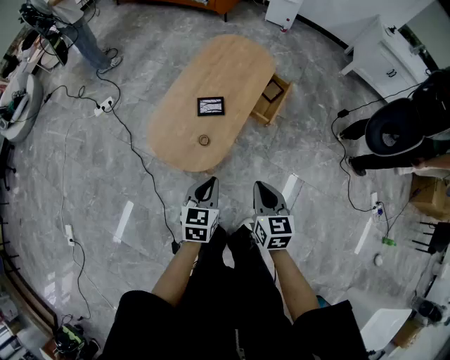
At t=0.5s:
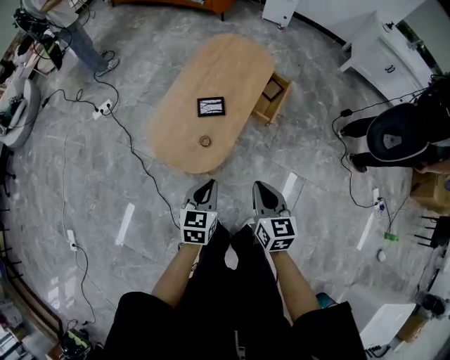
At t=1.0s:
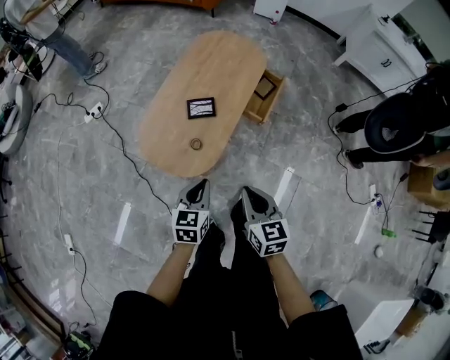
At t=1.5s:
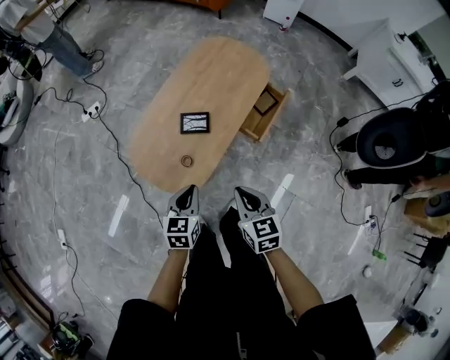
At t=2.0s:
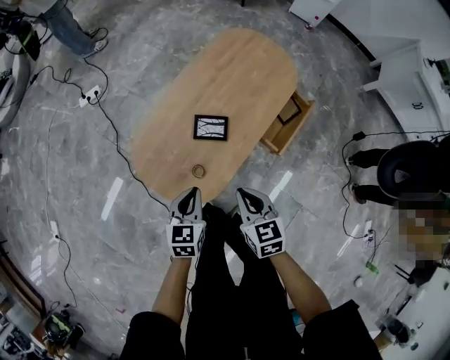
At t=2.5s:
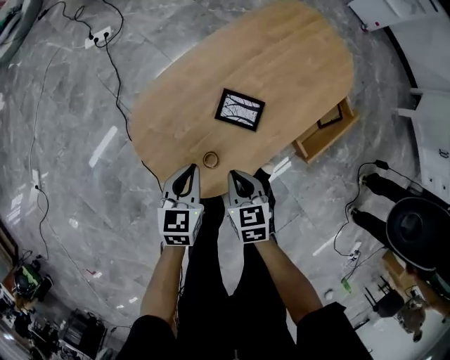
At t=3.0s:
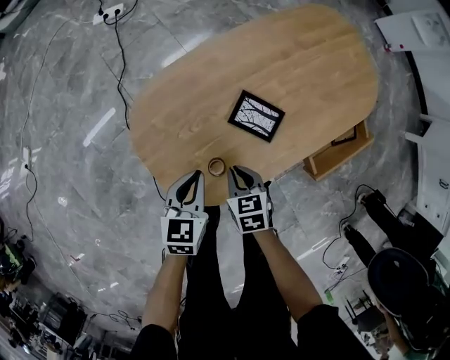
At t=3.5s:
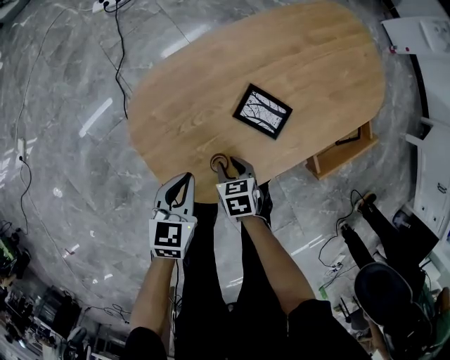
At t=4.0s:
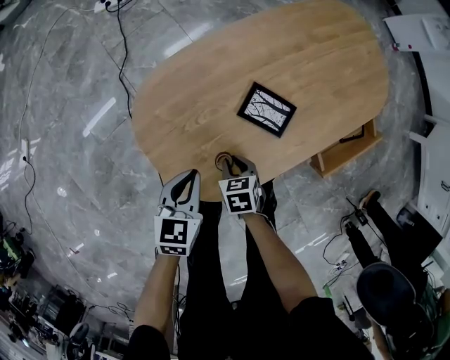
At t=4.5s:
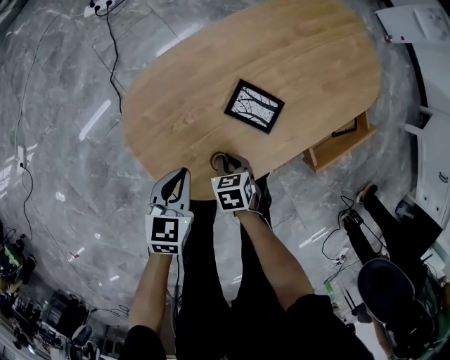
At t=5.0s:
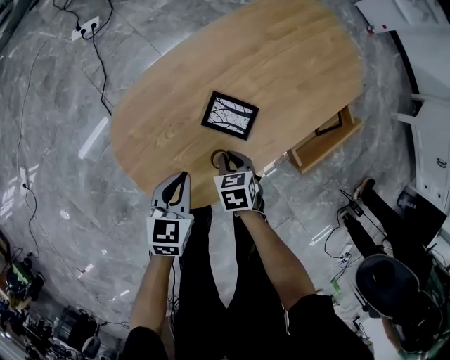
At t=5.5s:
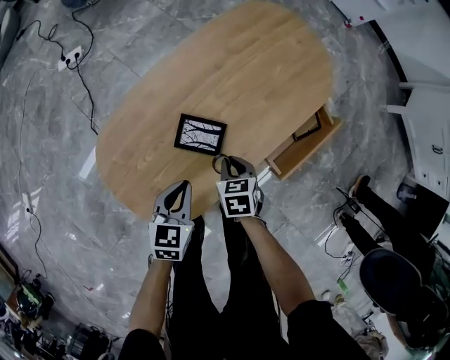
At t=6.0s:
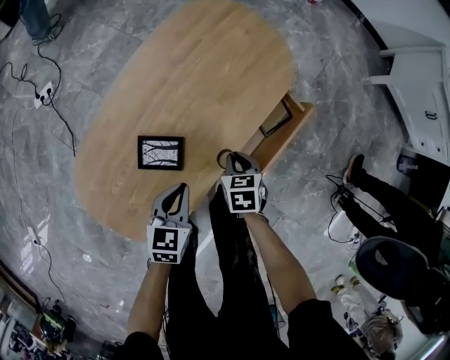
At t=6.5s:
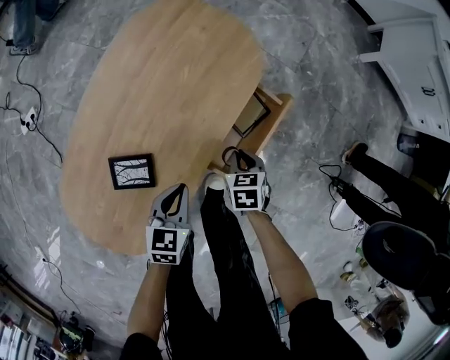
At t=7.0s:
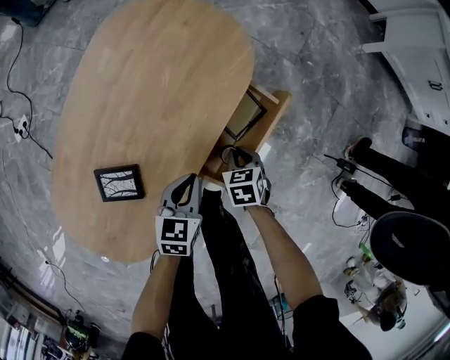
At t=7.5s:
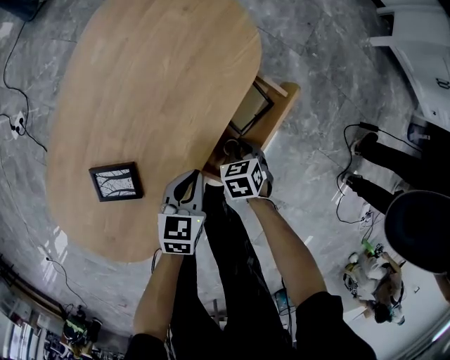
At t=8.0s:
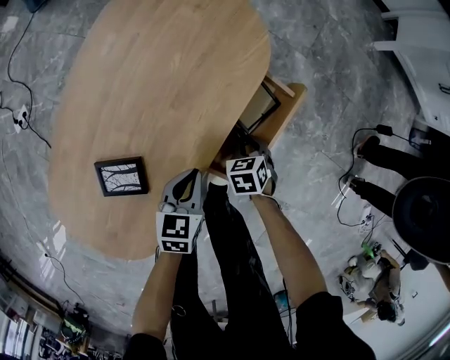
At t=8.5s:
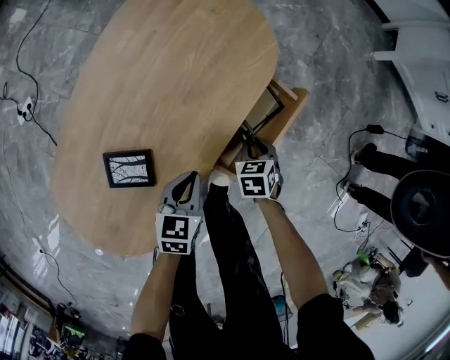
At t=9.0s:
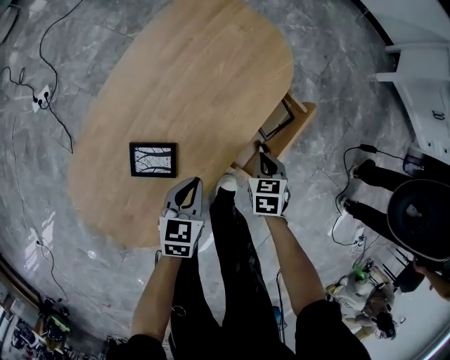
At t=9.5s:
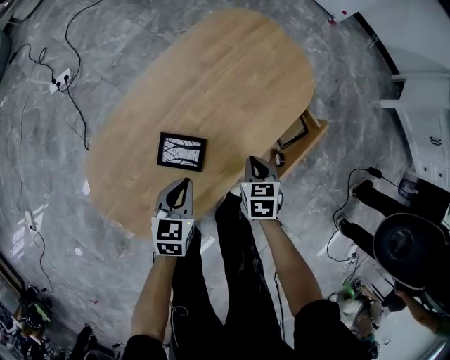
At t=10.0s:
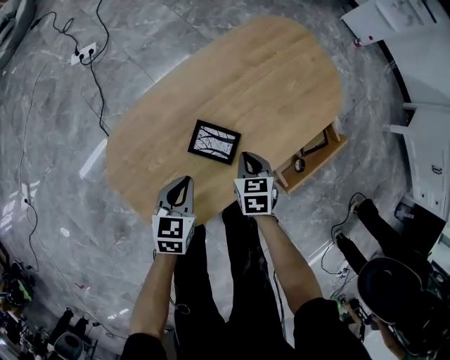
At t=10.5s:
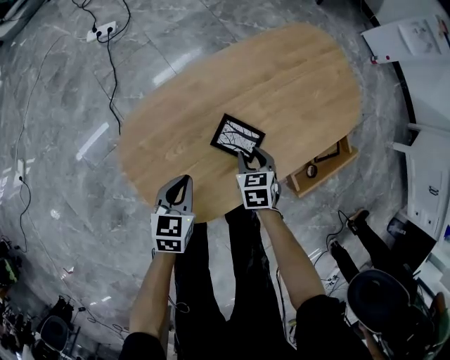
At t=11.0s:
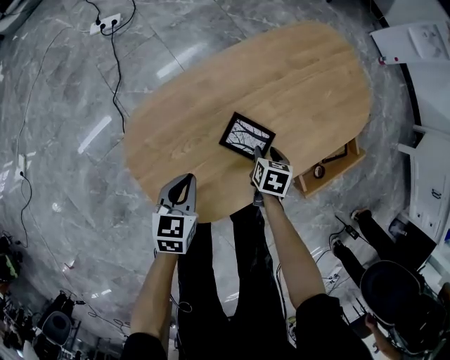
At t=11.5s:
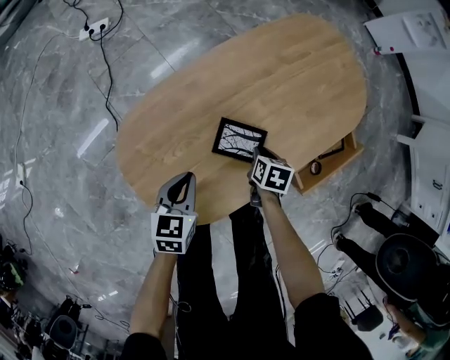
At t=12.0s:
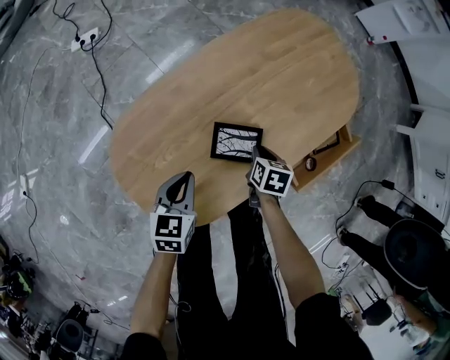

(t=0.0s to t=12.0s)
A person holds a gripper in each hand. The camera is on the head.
t=0.0s - t=2.0s: Both grippers travel together forward and downward, roughly 20 cm. The right gripper swivels roughly 20 degrees.
t=2.0s - t=4.0s: The left gripper is displaced downward and to the left by about 20 cm. Meanwhile the right gripper is displaced downward by some 35 cm, and swivels roughly 30 degrees.
t=4.0s - t=6.0s: The left gripper ends up approximately 25 cm from where it was, and changes its angle by some 20 degrees. Meanwhile the right gripper ends up some 35 cm from where it was, and swivels approximately 30 degrees.
t=6.0s - t=8.0s: The left gripper travels to the right, downward and forward by approximately 20 cm, while the right gripper moves downward, to the right and forward, approximately 20 cm.
t=8.0s - t=10.0s: The left gripper shifts by about 30 cm, and swivels about 20 degrees. The right gripper shifts by approximately 30 cm, and changes its angle by about 20 degrees.
t=10.0s - t=12.0s: The right gripper is displaced downward by about 5 cm, swivels approximately 30 degrees, and opens and closes again.

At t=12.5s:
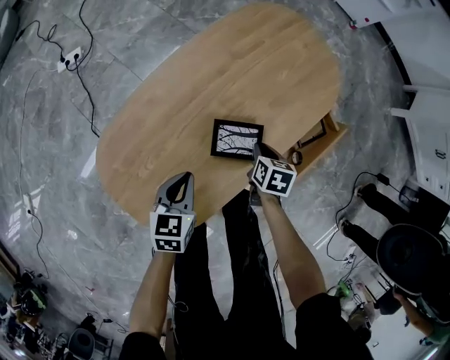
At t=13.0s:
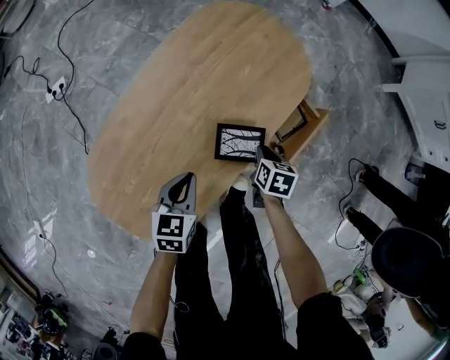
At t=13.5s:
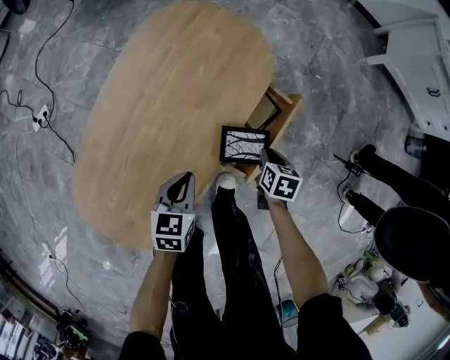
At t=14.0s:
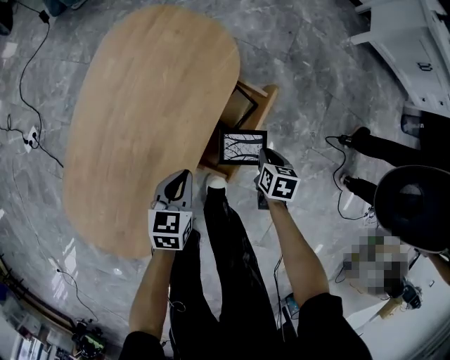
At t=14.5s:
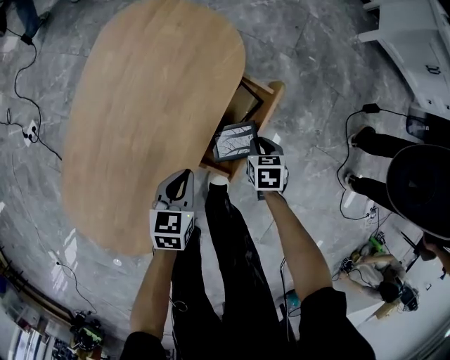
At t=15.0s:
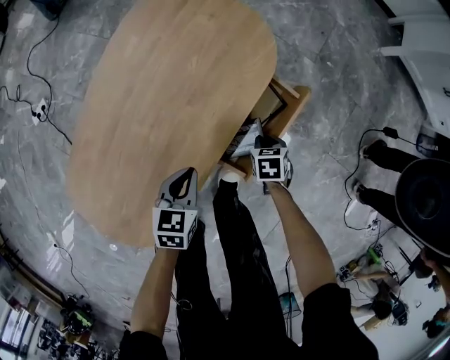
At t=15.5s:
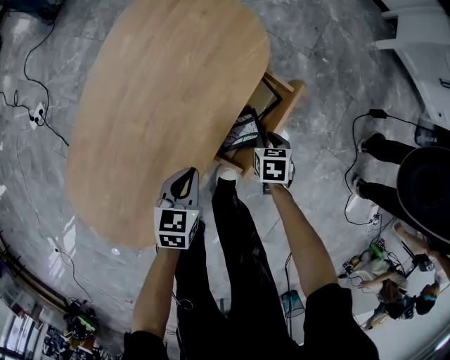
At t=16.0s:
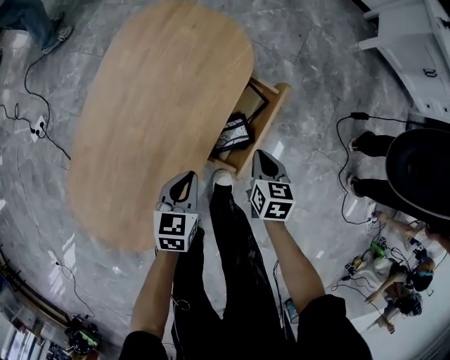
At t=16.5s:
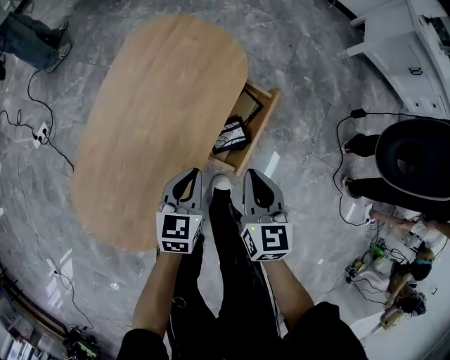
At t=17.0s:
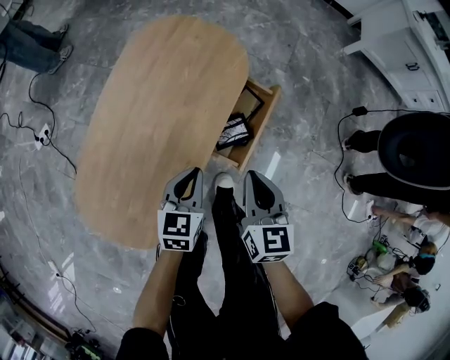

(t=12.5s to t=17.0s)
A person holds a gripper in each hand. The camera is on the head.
t=12.5s - t=14.5s: The left gripper moves to the right and forward, some 25 cm, and changes its angle by roughly 20 degrees. The right gripper travels to the right by approximately 25 cm.
t=14.5s - t=17.0s: The left gripper heads upward, covering approximately 10 cm; the right gripper moves upward and backward, roughly 30 cm, and points its fingers approximately 40 degrees further upward.

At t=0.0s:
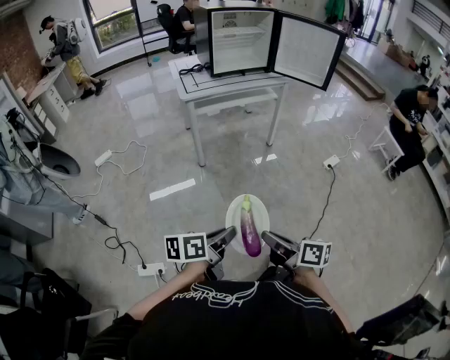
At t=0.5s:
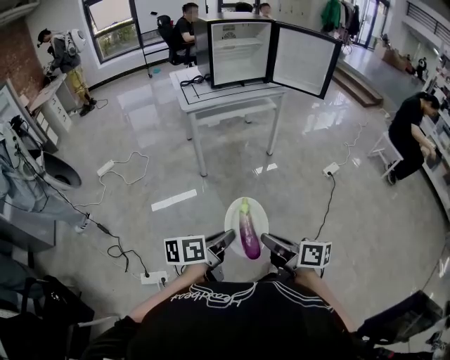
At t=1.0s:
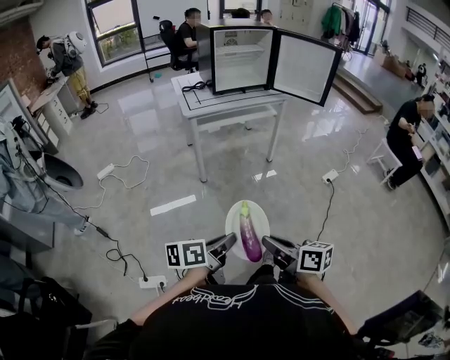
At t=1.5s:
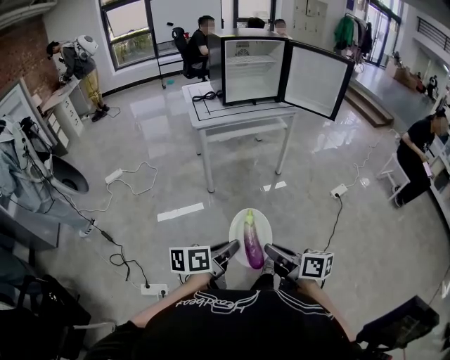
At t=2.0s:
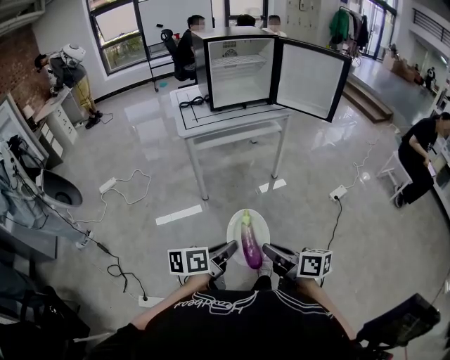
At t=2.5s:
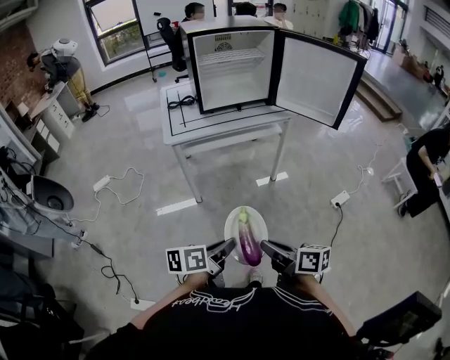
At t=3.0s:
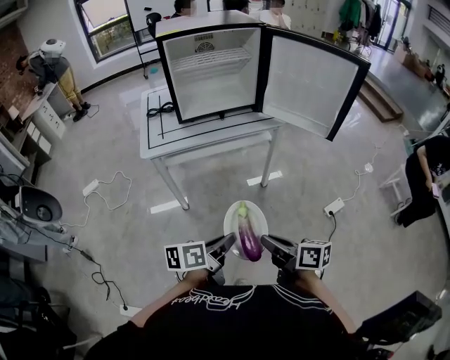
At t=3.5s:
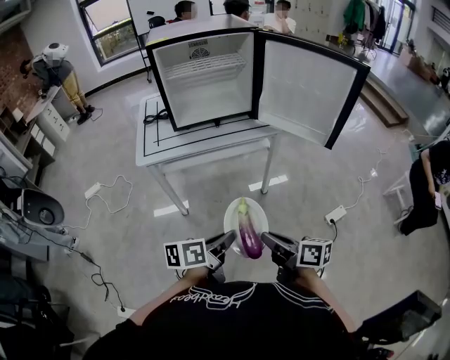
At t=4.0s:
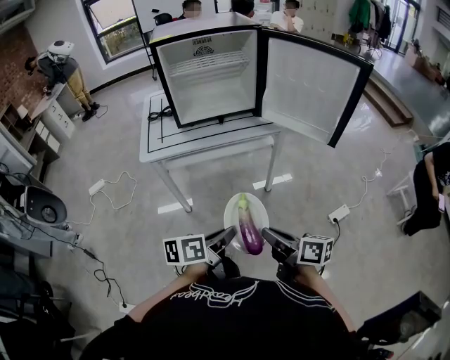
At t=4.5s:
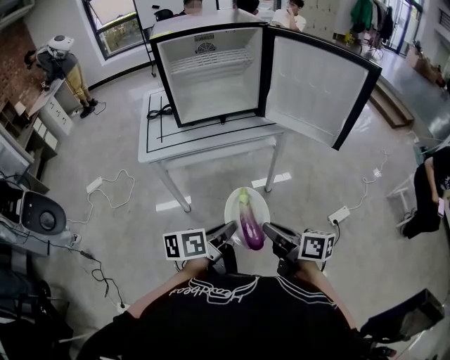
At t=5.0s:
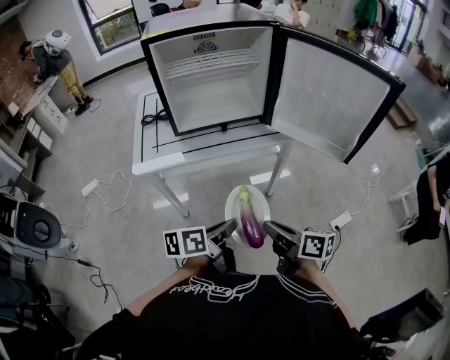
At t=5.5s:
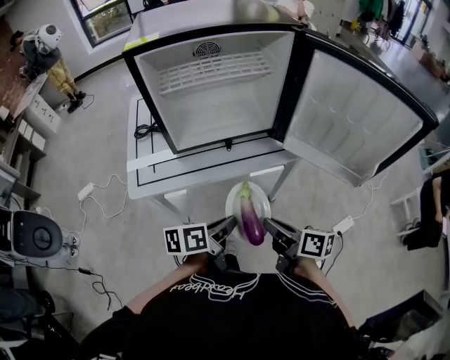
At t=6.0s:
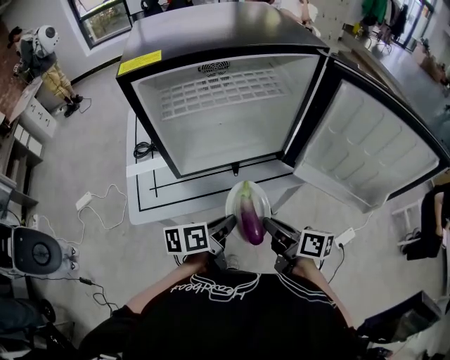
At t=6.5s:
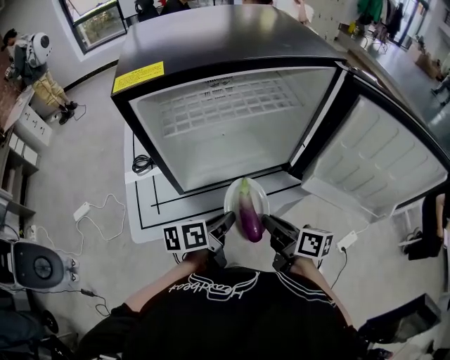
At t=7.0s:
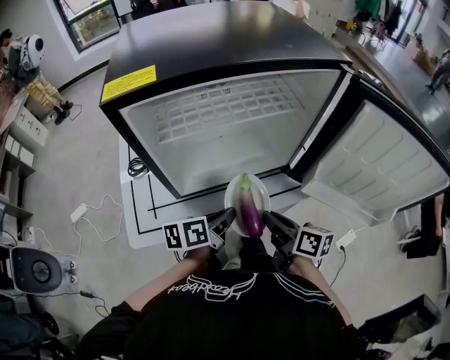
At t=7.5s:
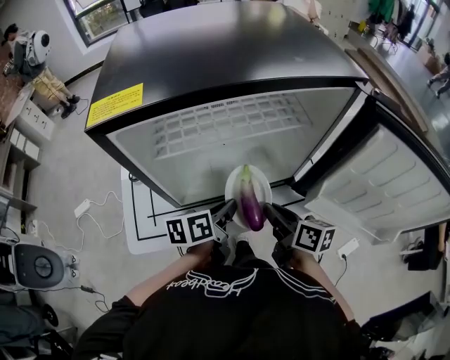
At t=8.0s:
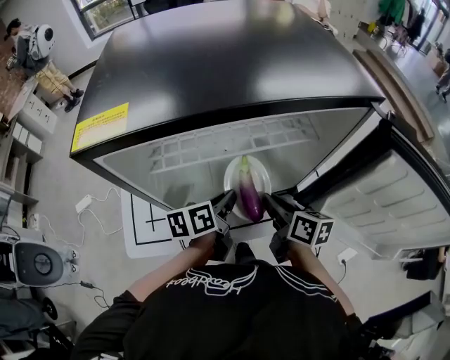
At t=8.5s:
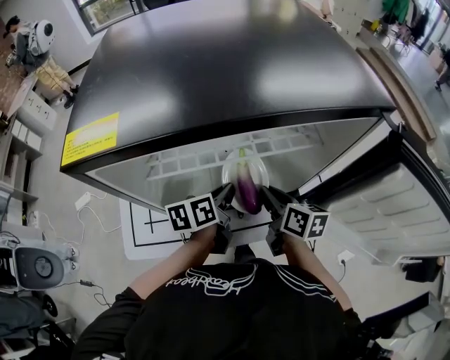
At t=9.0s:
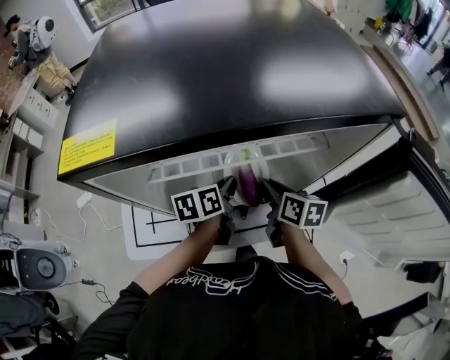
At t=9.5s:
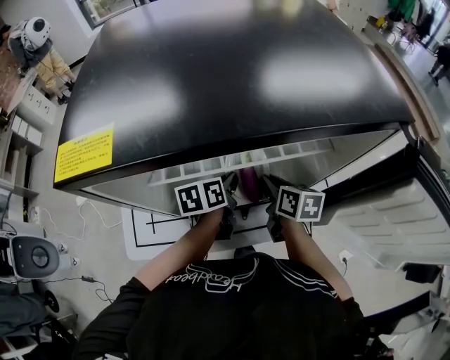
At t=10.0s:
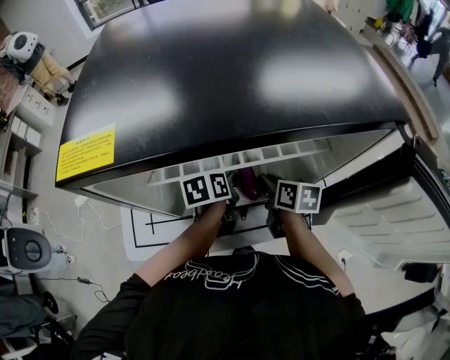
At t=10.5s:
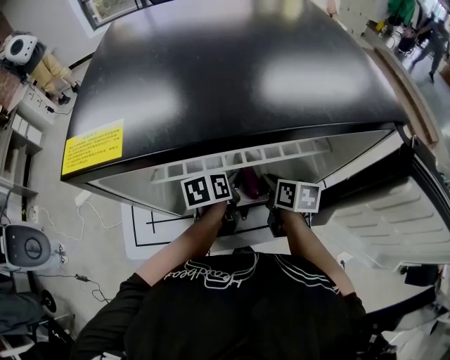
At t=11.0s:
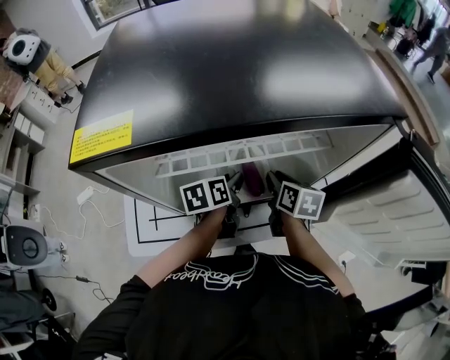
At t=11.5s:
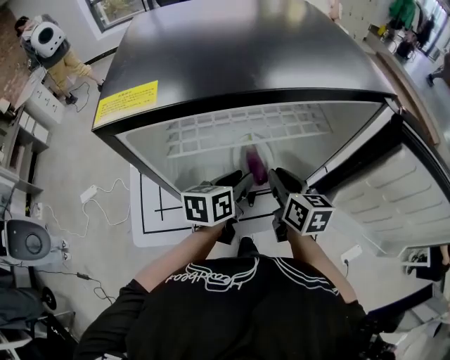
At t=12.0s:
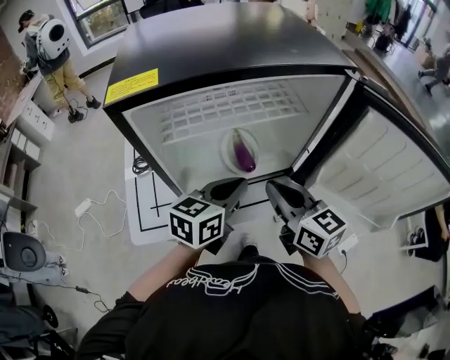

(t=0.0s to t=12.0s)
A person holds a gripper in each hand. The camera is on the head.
t=0.0s - t=2.0s: Both grippers move forward, roughly 15 cm.
t=2.0s - t=4.0s: The two grippers go some 40 cm forward and to the right.
t=4.0s - t=6.0s: The grippers both shift forward by about 40 cm.
t=6.0s - t=8.0s: The grippers both shift forward by roughly 20 cm.
t=8.0s - t=10.0s: The right gripper shifts about 10 cm forward; the left gripper moves forward and downward, some 10 cm.
t=10.0s - t=12.0s: Both grippers move backward and upward, some 20 cm. The right gripper swivels roughly 40 degrees, while the left gripper swivels about 40 degrees, and opens, then closes again.
